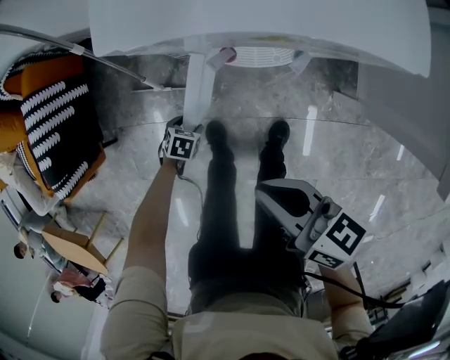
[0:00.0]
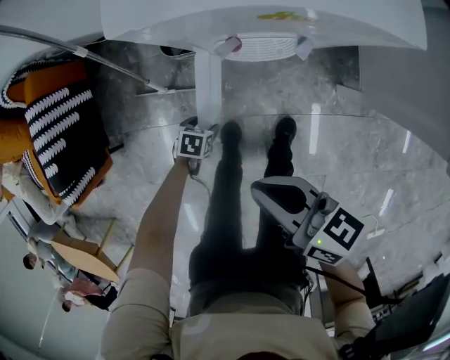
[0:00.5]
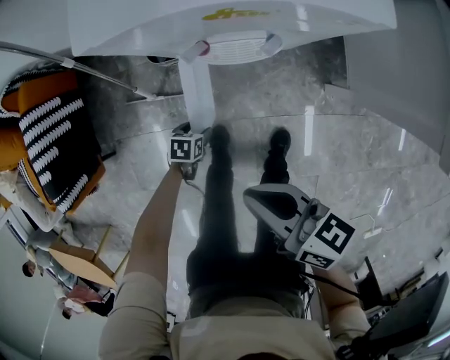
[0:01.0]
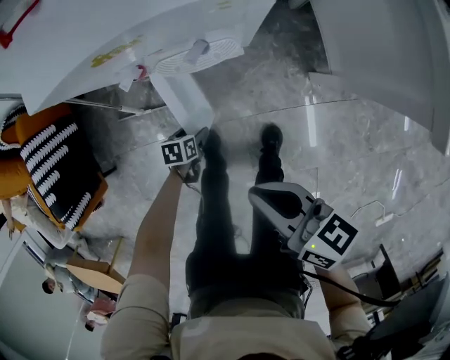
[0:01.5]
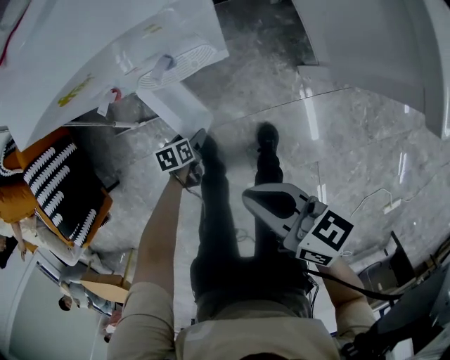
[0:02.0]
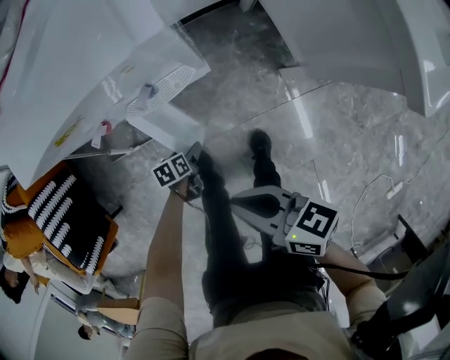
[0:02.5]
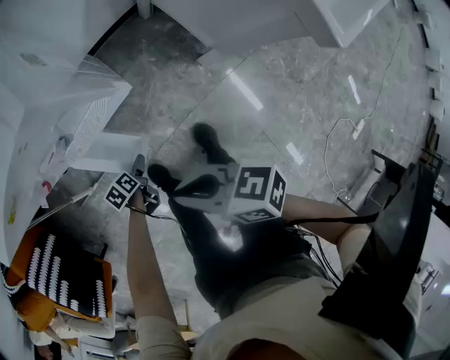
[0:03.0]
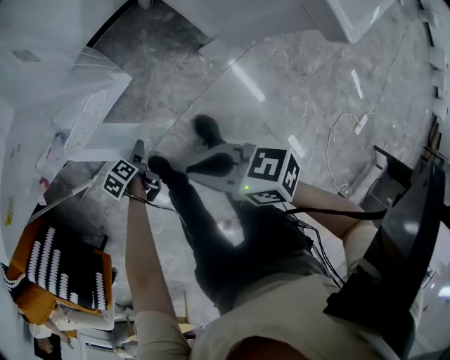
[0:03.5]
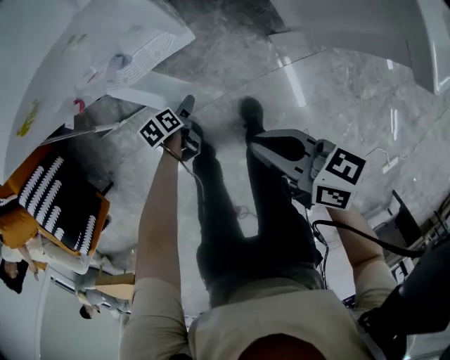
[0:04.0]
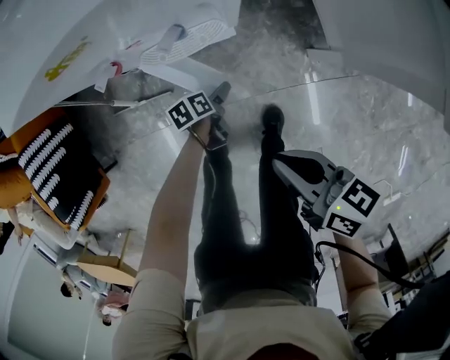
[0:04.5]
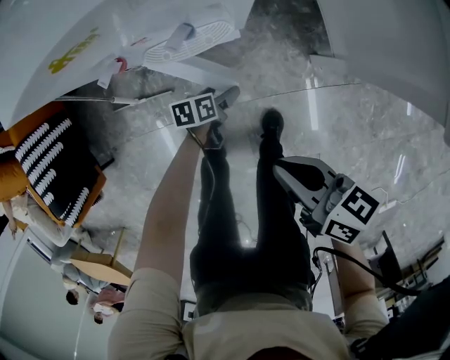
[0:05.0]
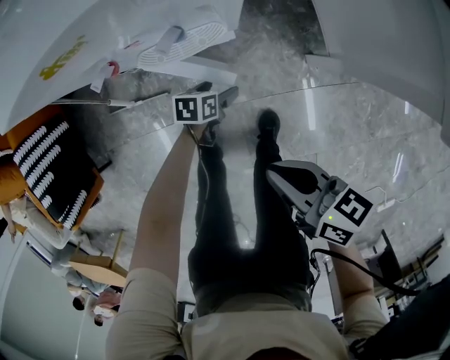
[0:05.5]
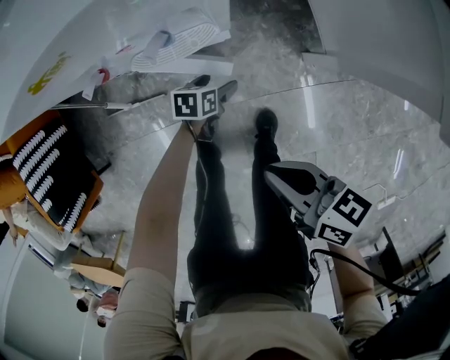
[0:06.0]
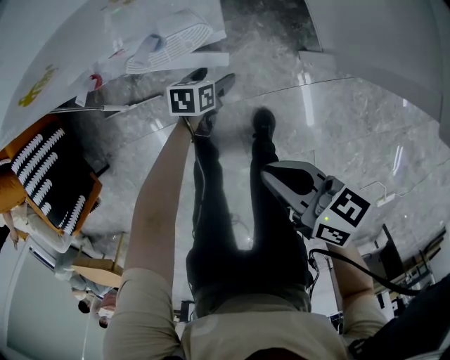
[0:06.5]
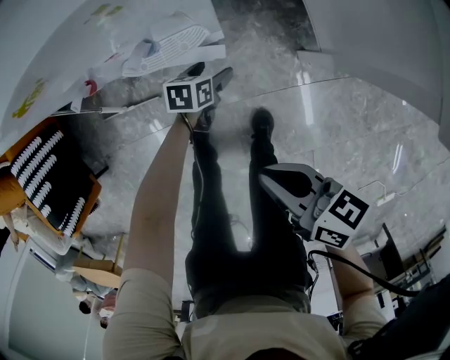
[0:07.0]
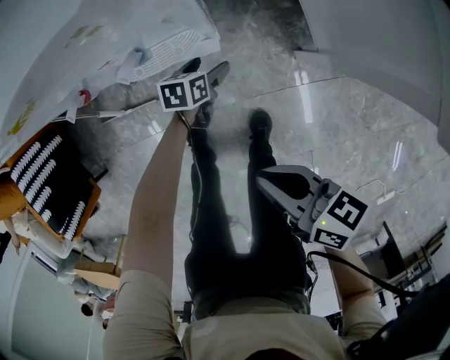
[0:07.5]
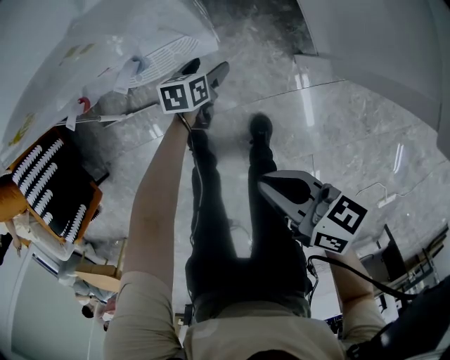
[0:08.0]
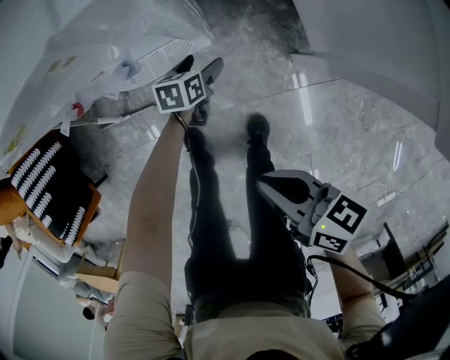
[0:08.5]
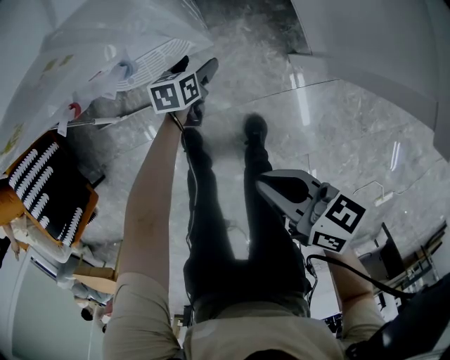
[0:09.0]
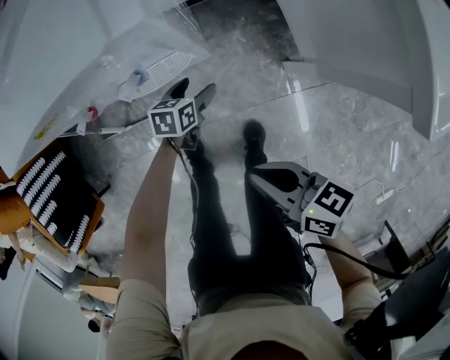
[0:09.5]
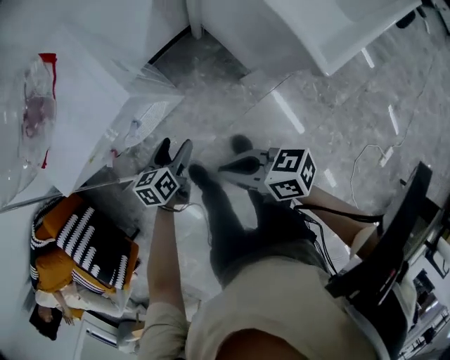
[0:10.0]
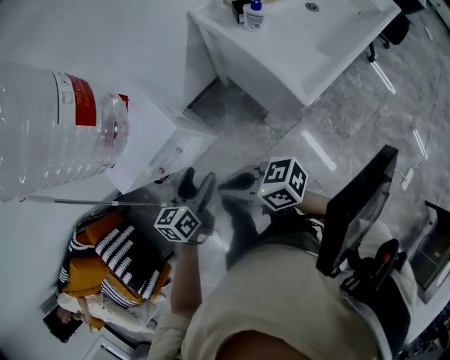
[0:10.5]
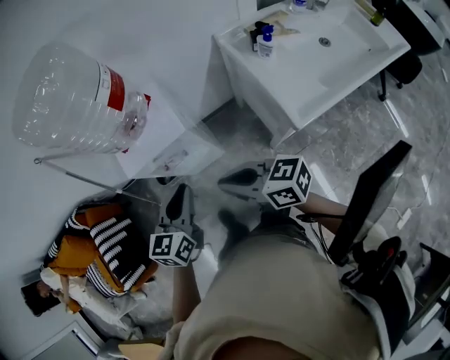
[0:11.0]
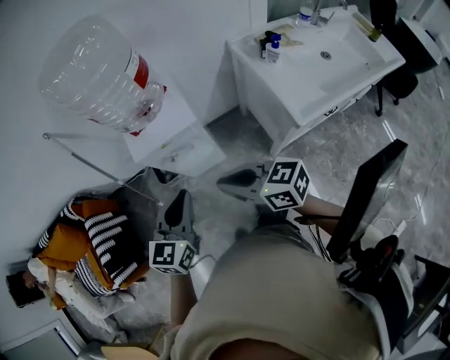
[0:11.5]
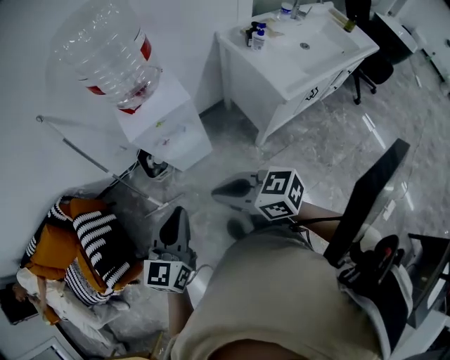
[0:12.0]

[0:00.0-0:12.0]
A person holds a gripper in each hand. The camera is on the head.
0:00.0 to 0:02.0: The left gripper changes place by some 15 cm, and turns by roughly 30 degrees; the right gripper changes place by roughly 10 cm.
0:02.0 to 0:04.0: The grippers both shift to the right by roughly 5 cm.
0:04.0 to 0:06.0: The left gripper shifts by roughly 10 cm, and changes its angle by some 30 degrees.
0:06.0 to 0:08.0: The left gripper heads forward, covering approximately 10 cm.
0:08.0 to 0:10.0: The left gripper is displaced upward by roughly 25 cm, while the right gripper heads upward, covering some 10 cm.
0:10.0 to 0:12.0: The right gripper shifts roughly 35 cm upward, backward and to the left, and turns by about 30 degrees. The left gripper goes approximately 50 cm upward and backward, changes its angle by about 40 degrees, and closes.

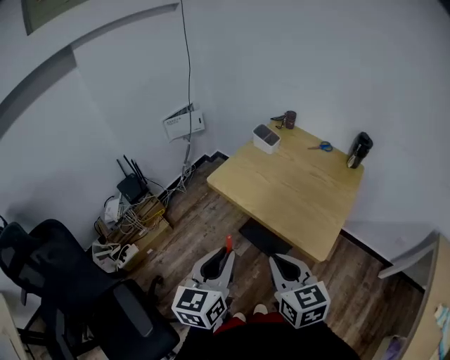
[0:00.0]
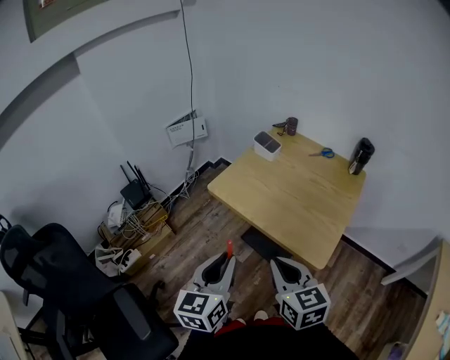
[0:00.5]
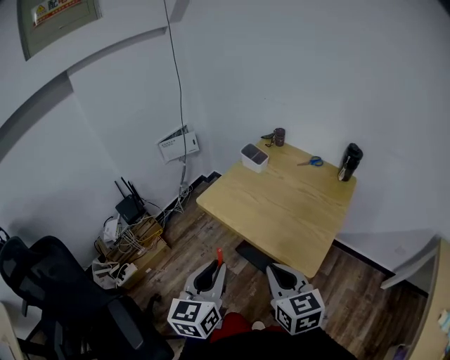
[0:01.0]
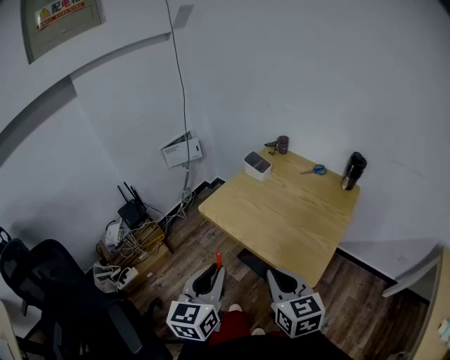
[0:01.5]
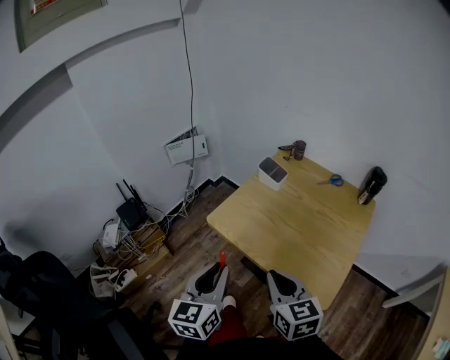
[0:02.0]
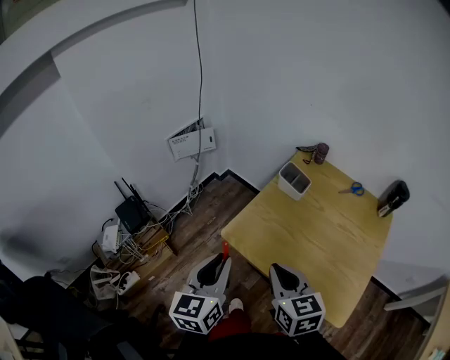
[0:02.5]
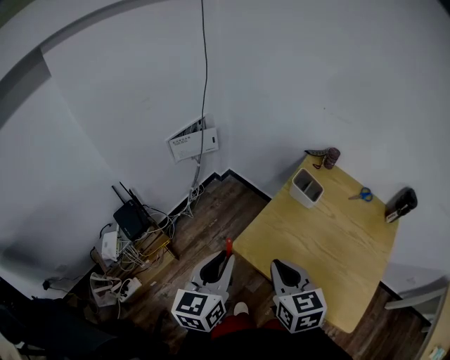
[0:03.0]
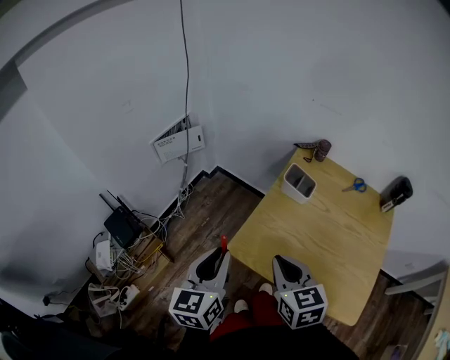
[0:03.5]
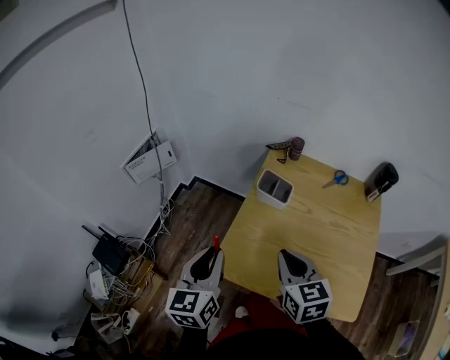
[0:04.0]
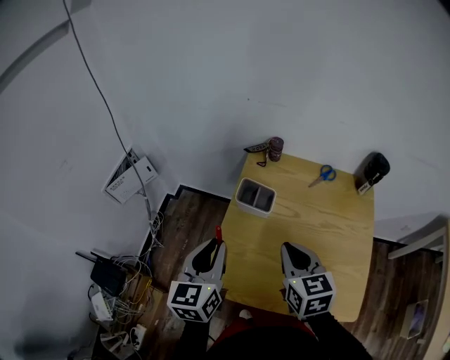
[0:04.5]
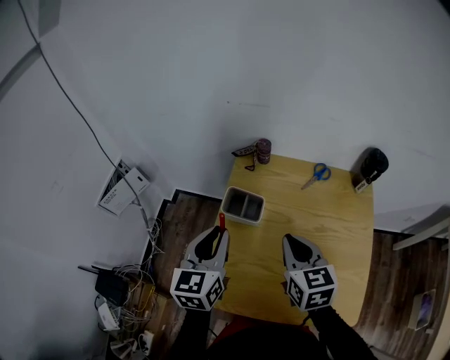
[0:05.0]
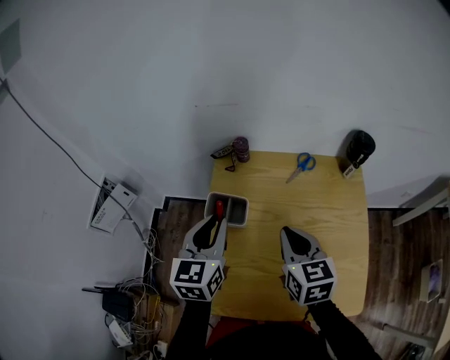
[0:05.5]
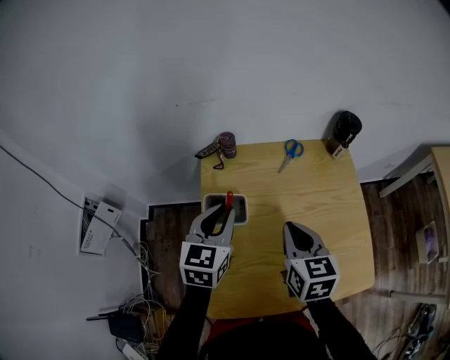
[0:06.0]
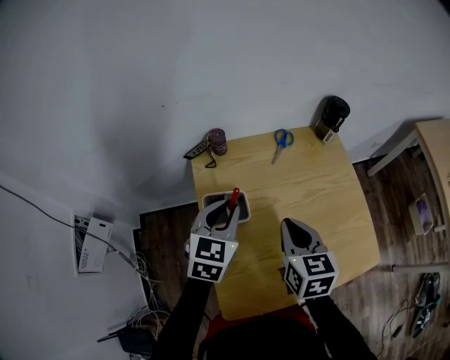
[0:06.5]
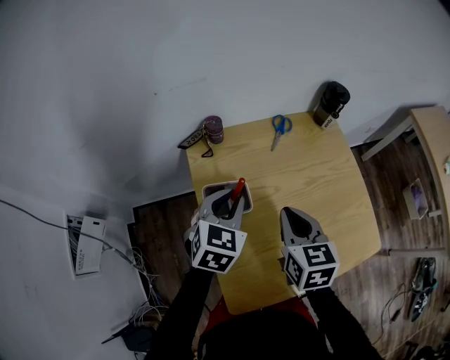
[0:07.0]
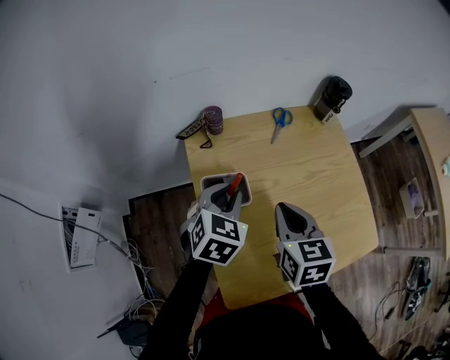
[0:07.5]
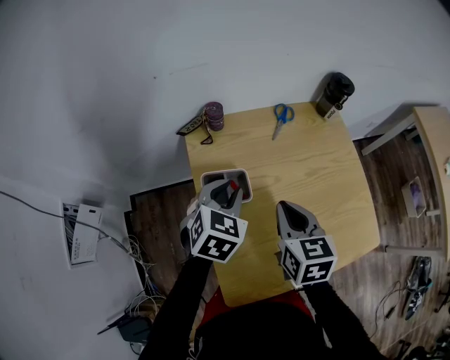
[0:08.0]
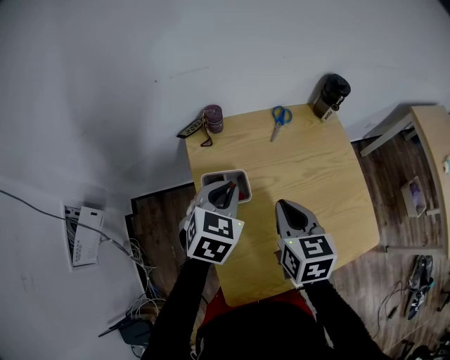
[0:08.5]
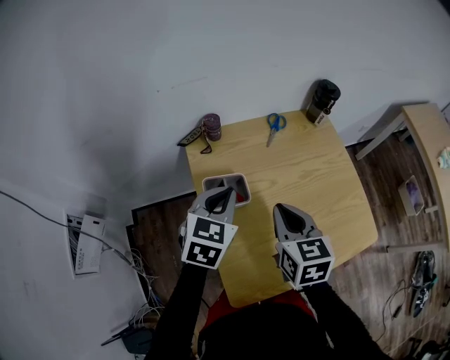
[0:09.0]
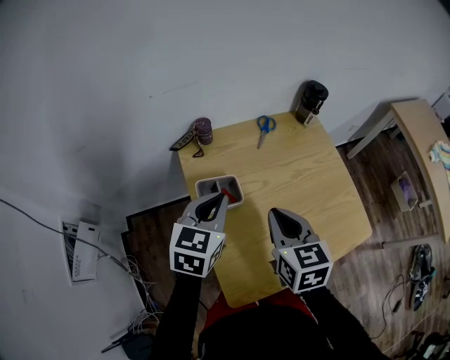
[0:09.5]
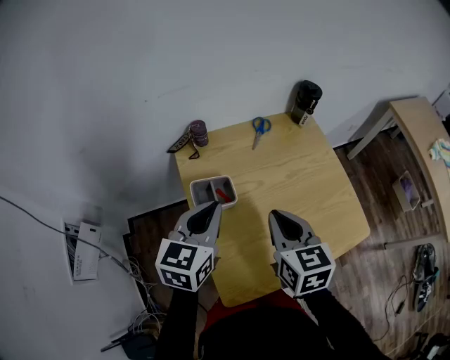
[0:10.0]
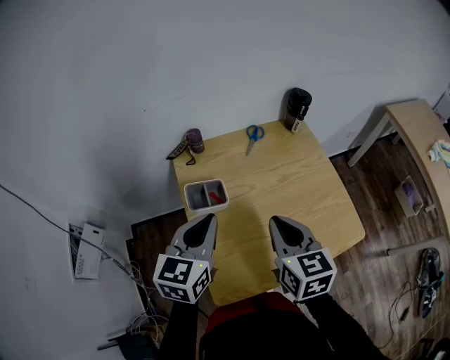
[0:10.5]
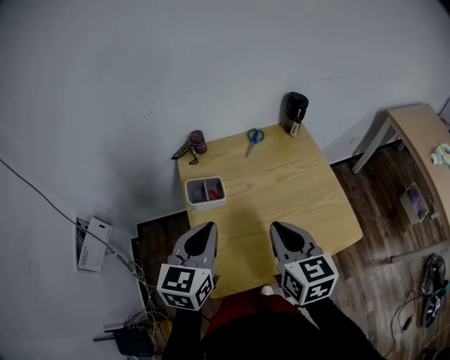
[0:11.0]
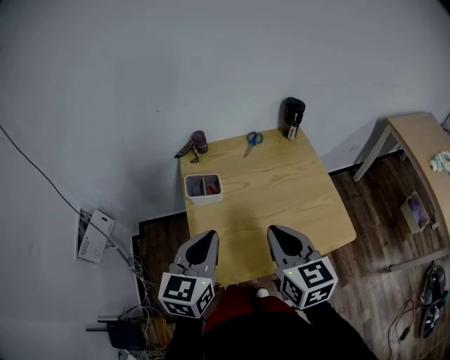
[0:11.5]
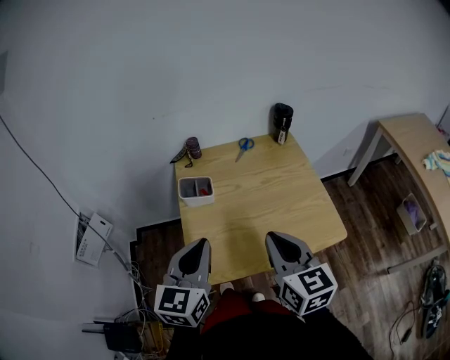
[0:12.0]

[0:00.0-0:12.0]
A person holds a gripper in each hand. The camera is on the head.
0:00.0 to 0:02.0: Both grippers move forward, approximately 15 cm.
0:02.0 to 0:04.0: The two grippers go roughly 25 cm forward.
0:04.0 to 0:06.0: The right gripper changes place by roughly 15 cm, and rotates approximately 30 degrees. The left gripper moves some 30 cm, and turns by about 40 degrees.
0:06.0 to 0:08.0: The left gripper is displaced downward by some 5 cm, and changes its angle by approximately 30 degrees.
0:08.0 to 0:10.0: The left gripper moves upward and backward, some 10 cm, changes its angle by about 30 degrees, and closes up; the right gripper heads upward, covering about 5 cm.
0:10.0 to 0:12.0: The right gripper is displaced backward, to the right and upward by roughly 20 cm. Meanwhile the left gripper moves backward, about 20 cm.

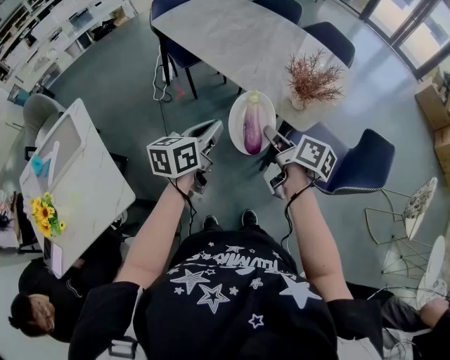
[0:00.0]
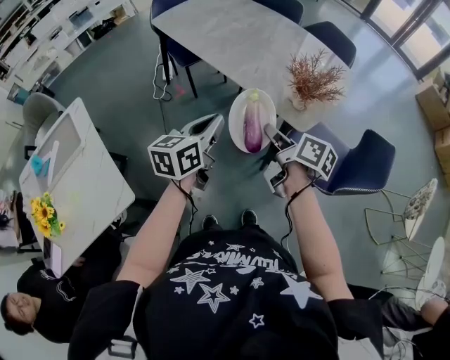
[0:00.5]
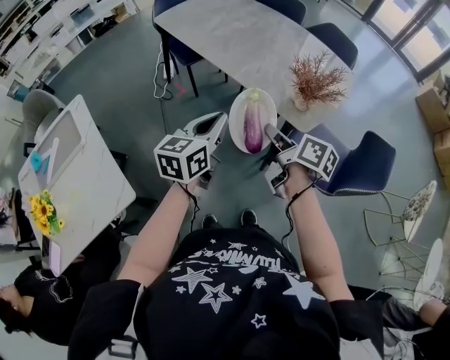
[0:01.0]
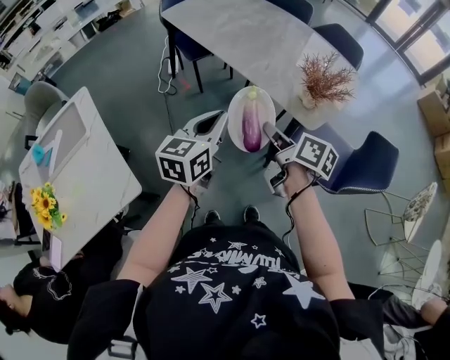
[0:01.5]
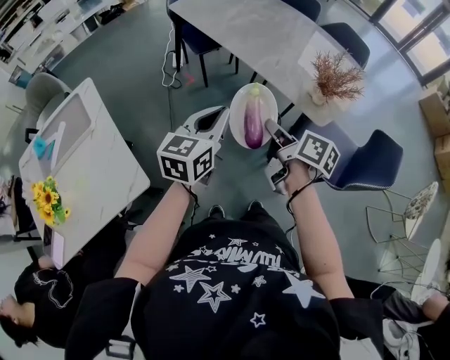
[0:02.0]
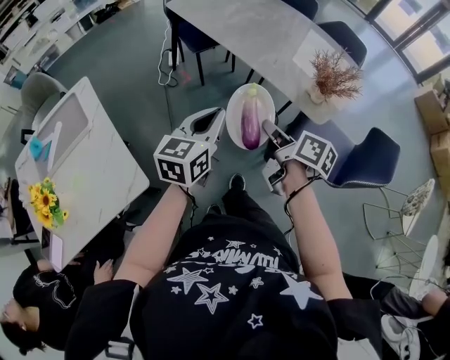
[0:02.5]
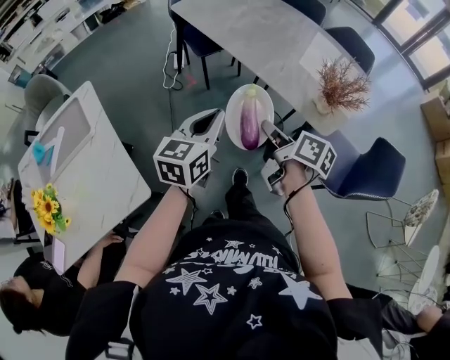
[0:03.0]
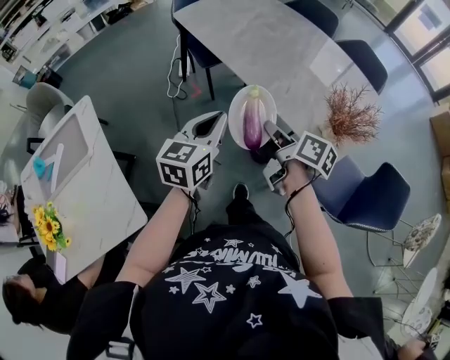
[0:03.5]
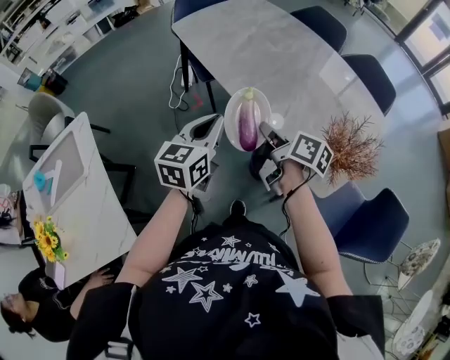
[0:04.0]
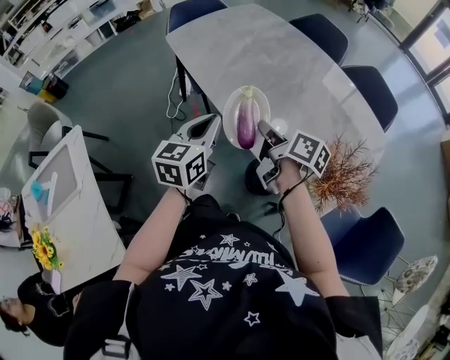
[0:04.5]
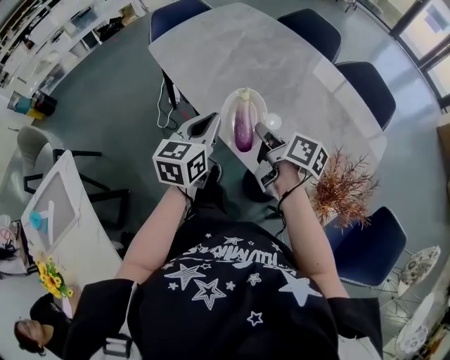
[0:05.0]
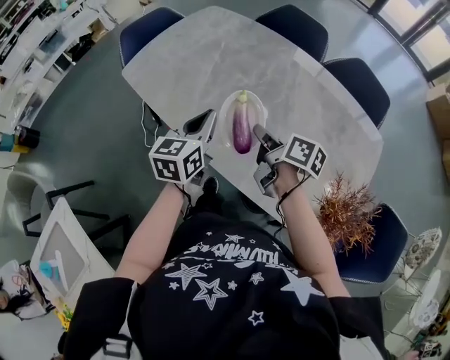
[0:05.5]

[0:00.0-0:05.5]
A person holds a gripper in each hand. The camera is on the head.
0:00.0 to 0:02.0: The two grippers go roughly 10 cm to the left. The left gripper swivels approximately 20 degrees.
0:02.0 to 0:03.5: The grippers both shift forward by some 15 cm.
0:03.5 to 0:05.5: The grippers both shift forward by about 40 cm.
